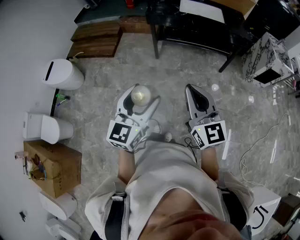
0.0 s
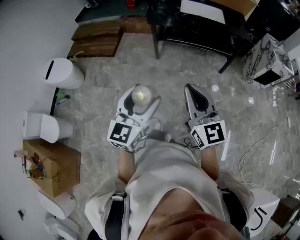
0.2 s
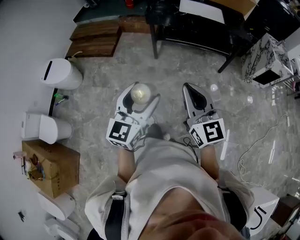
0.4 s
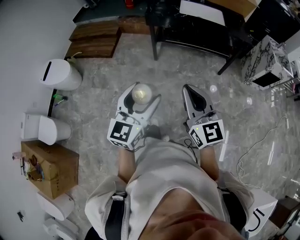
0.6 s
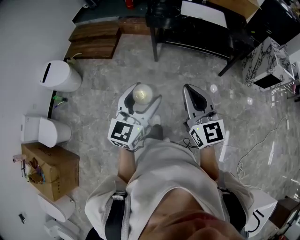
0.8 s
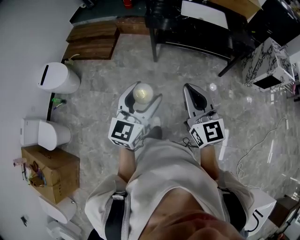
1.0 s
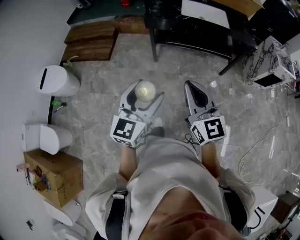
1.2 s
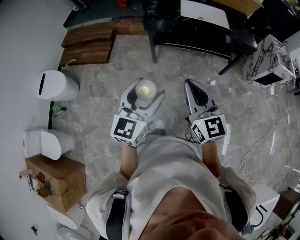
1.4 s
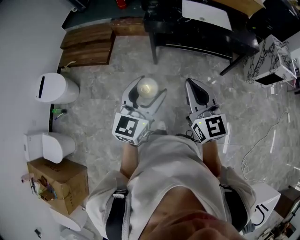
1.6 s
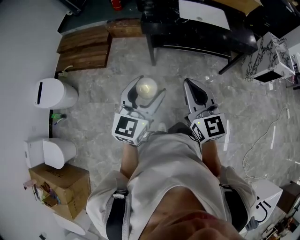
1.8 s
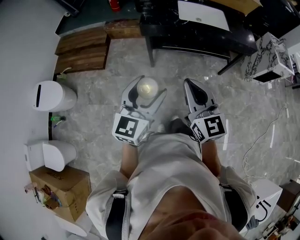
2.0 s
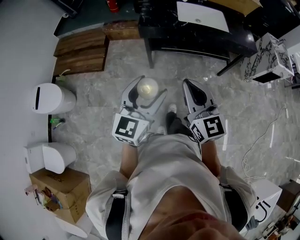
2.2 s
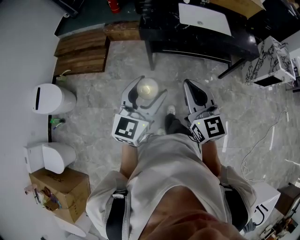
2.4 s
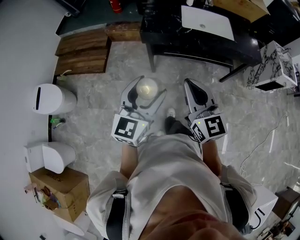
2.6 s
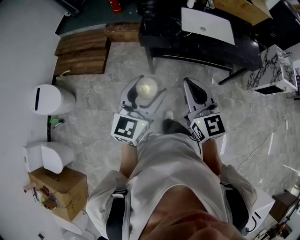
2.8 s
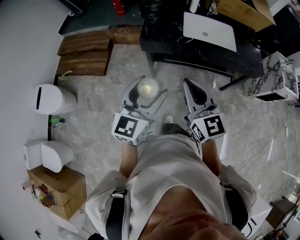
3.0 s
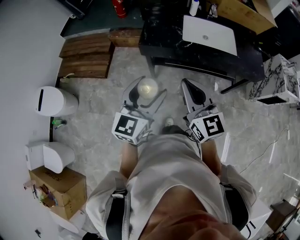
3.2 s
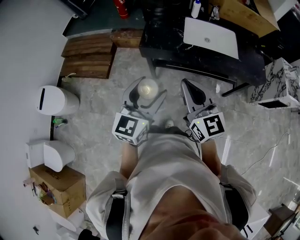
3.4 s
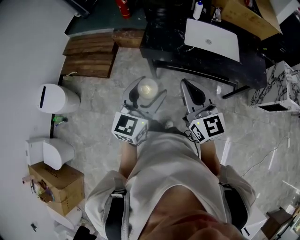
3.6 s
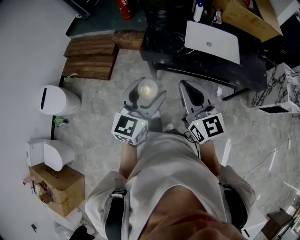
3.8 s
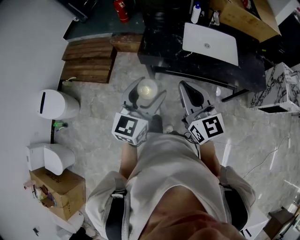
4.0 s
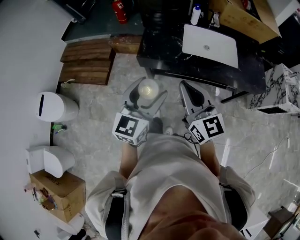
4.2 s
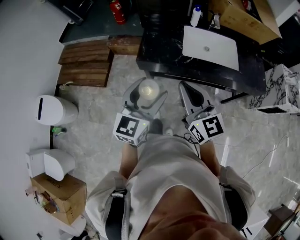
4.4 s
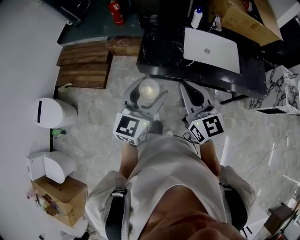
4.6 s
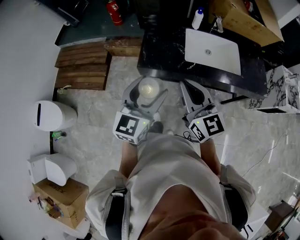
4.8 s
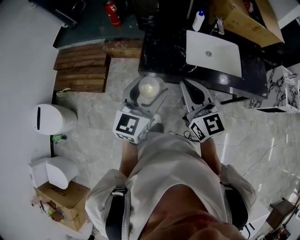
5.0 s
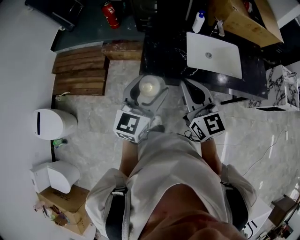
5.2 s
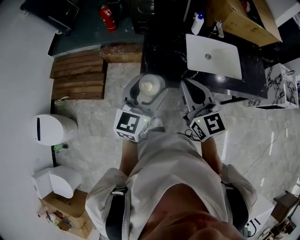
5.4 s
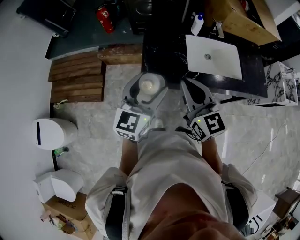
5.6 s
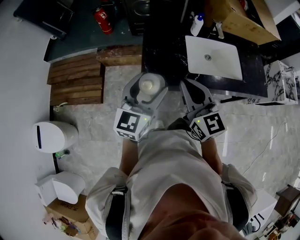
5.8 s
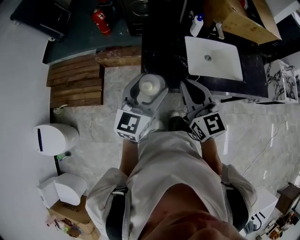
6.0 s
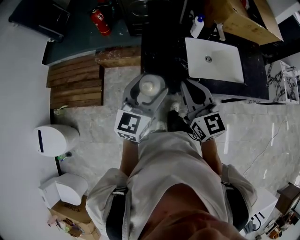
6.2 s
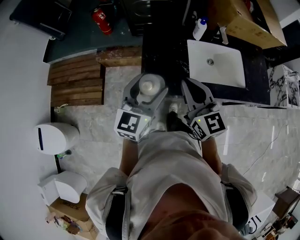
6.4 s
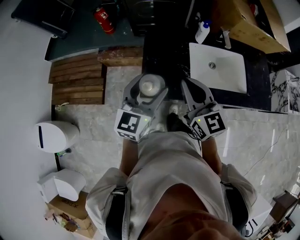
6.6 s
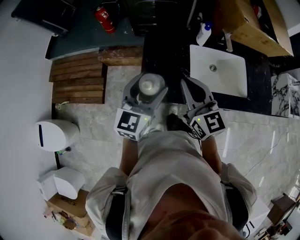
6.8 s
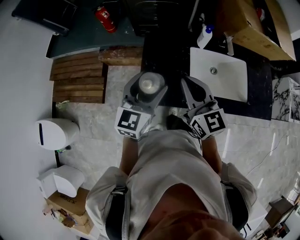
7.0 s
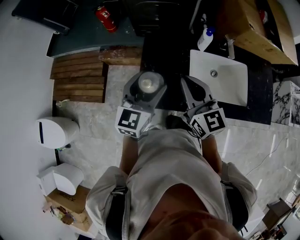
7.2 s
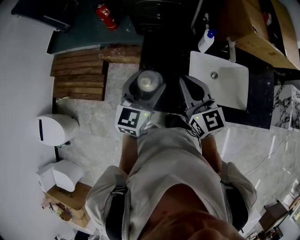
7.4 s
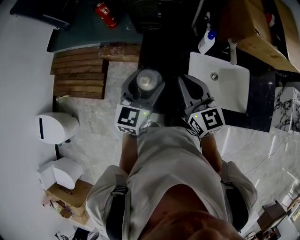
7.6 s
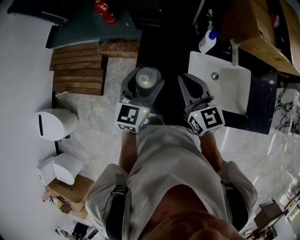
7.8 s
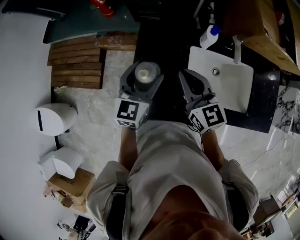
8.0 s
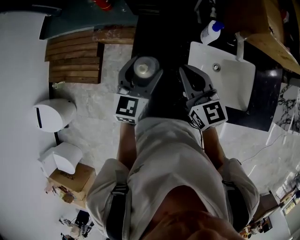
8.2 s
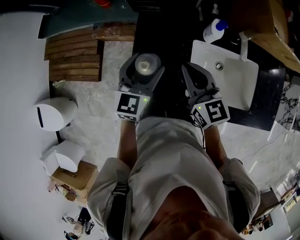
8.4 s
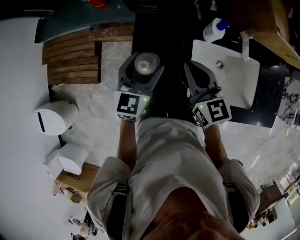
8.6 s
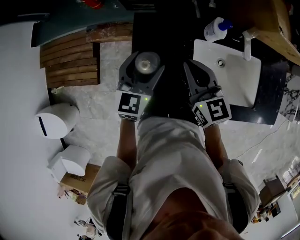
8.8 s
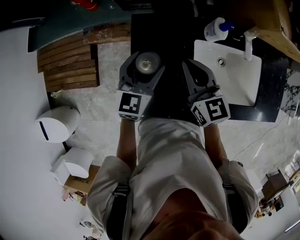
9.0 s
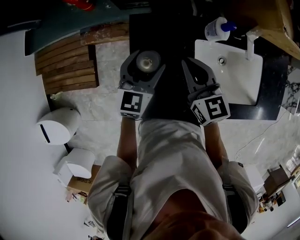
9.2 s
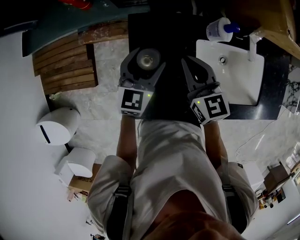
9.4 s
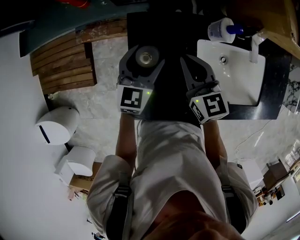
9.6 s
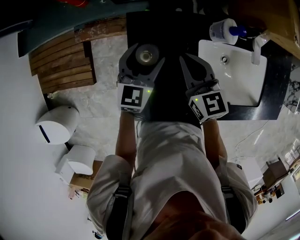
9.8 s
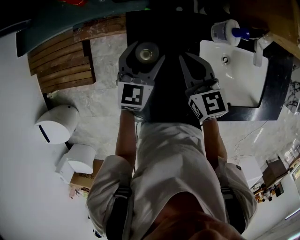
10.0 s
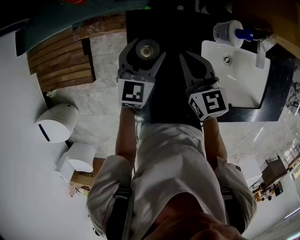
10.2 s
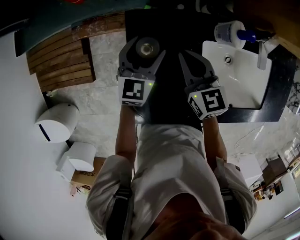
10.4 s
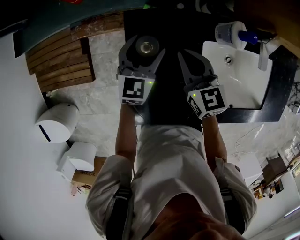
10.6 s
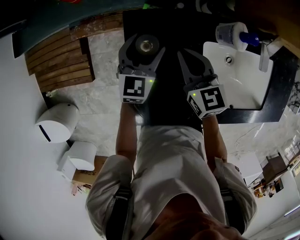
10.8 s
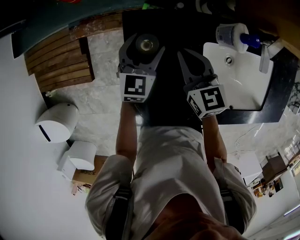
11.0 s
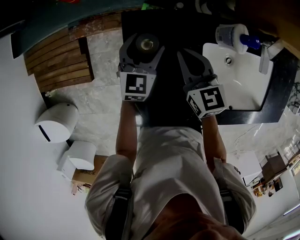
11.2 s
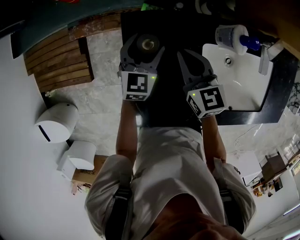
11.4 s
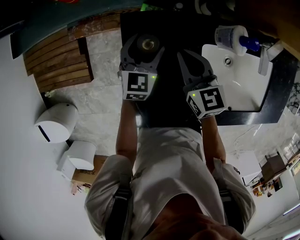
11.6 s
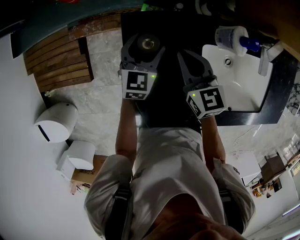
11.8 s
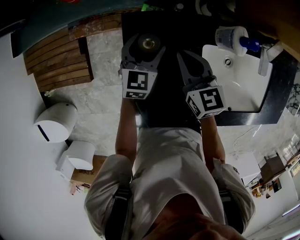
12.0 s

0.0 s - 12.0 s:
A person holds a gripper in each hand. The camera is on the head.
0.0 s - 1.6 s: The two grippers go some 25 cm forward.
1.6 s - 3.0 s: Both grippers move forward, approximately 20 cm.
3.0 s - 4.4 s: The grippers both shift forward by roughly 15 cm.
4.4 s - 6.0 s: The grippers both shift forward by about 20 cm.
6.0 s - 7.6 s: The two grippers go roughly 20 cm forward.
7.6 s - 9.0 s: The two grippers go about 15 cm forward and downward.
9.0 s - 10.4 s: Both grippers move downward and forward, roughly 10 cm.
10.4 s - 12.0 s: The left gripper shifts approximately 5 cm downward.

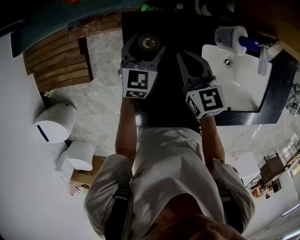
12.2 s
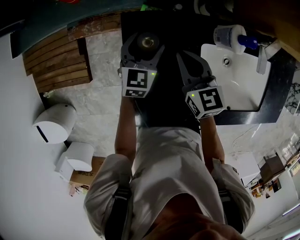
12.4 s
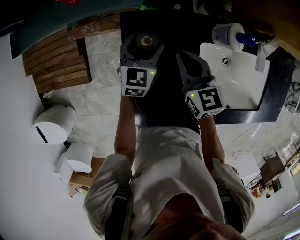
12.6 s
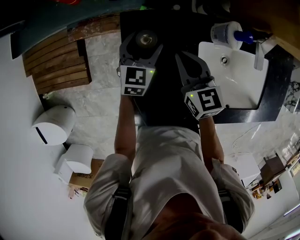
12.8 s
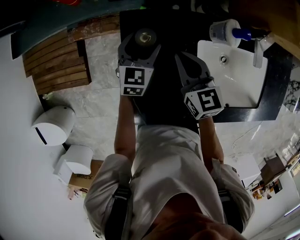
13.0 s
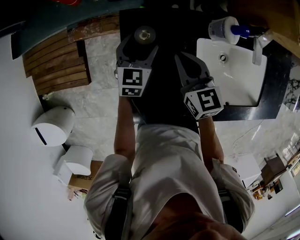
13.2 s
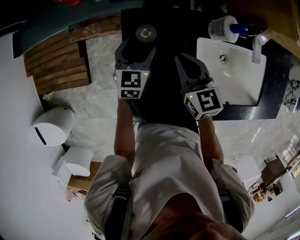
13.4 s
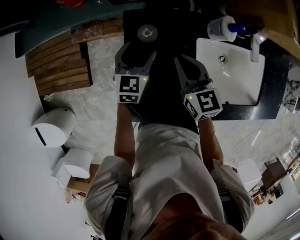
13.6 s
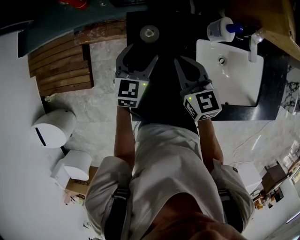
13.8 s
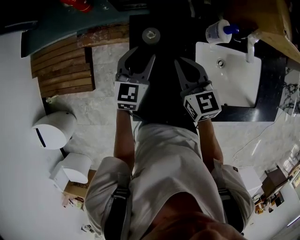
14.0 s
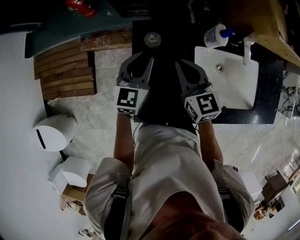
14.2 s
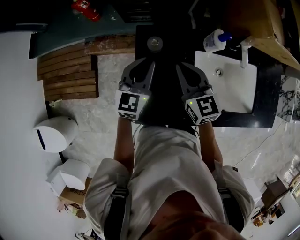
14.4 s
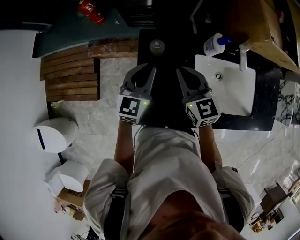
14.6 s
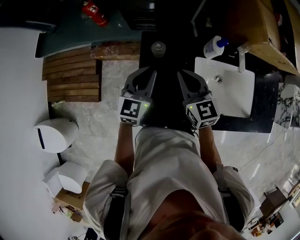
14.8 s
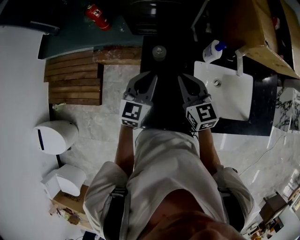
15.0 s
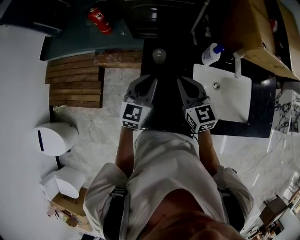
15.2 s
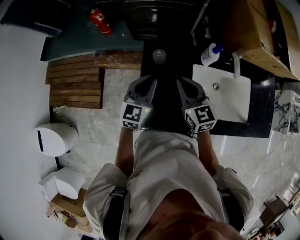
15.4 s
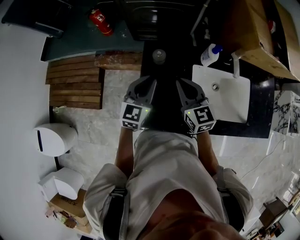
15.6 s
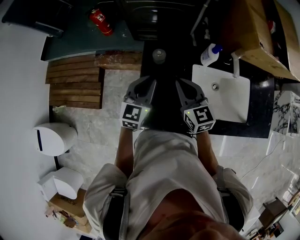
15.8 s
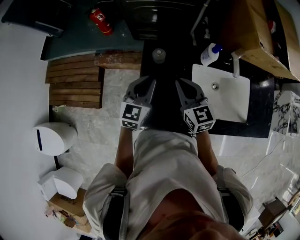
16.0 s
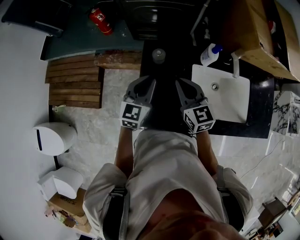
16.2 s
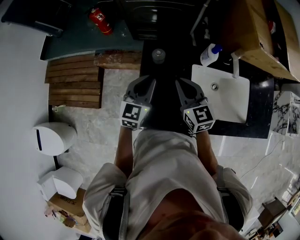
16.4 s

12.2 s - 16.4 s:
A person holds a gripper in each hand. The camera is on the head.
12.2 s - 13.6 s: The right gripper ends up about 5 cm from where it was. Meanwhile the left gripper travels backward by some 5 cm.
13.6 s - 15.0 s: The left gripper moves upward and backward, some 15 cm, and closes up. The right gripper heads upward, covering some 10 cm.
15.0 s - 16.4 s: The grippers move only a little.

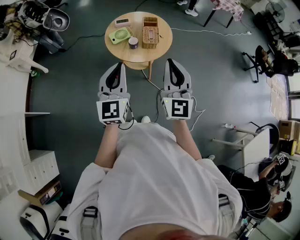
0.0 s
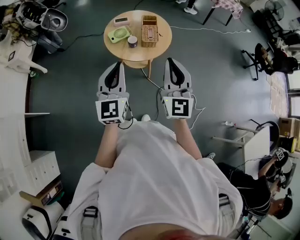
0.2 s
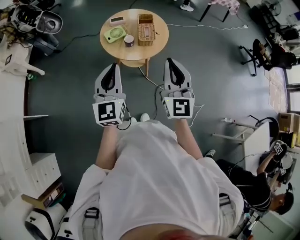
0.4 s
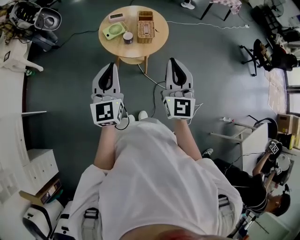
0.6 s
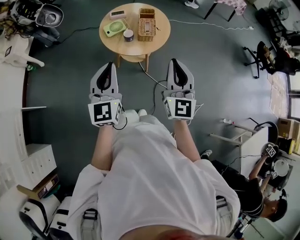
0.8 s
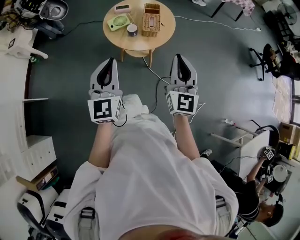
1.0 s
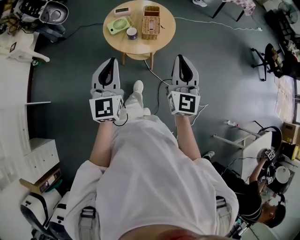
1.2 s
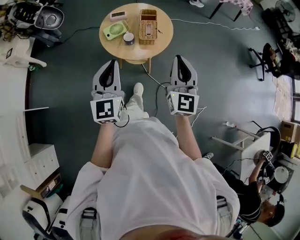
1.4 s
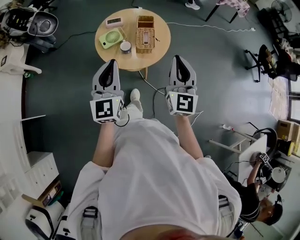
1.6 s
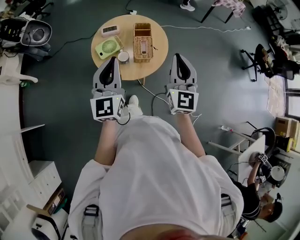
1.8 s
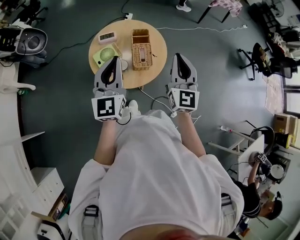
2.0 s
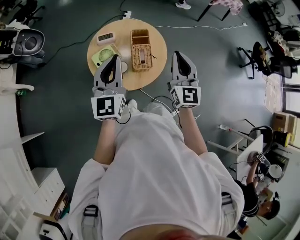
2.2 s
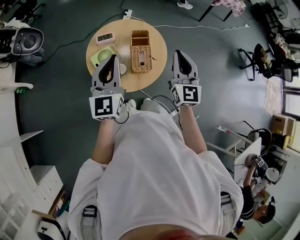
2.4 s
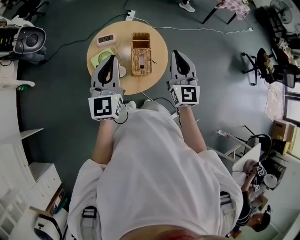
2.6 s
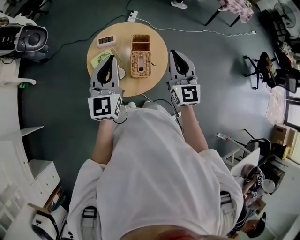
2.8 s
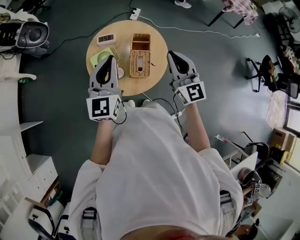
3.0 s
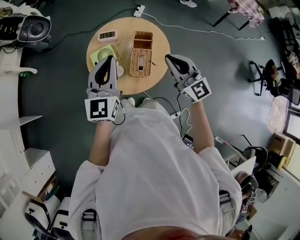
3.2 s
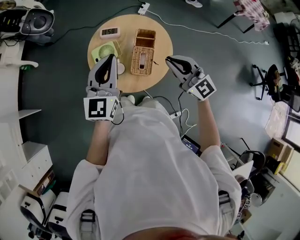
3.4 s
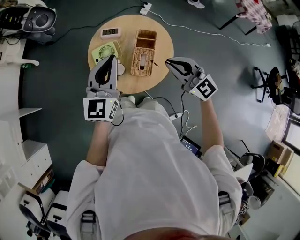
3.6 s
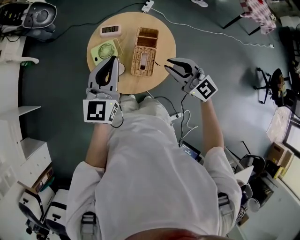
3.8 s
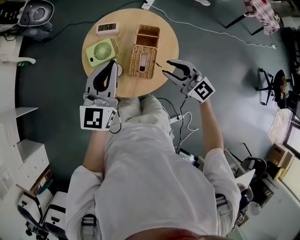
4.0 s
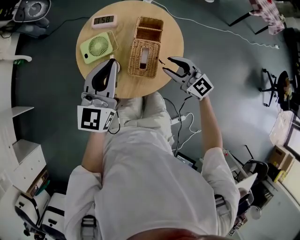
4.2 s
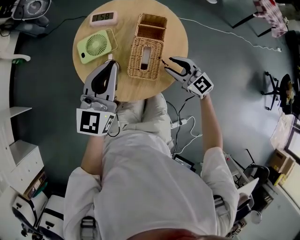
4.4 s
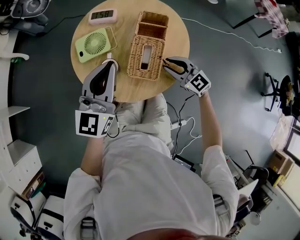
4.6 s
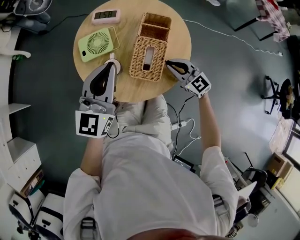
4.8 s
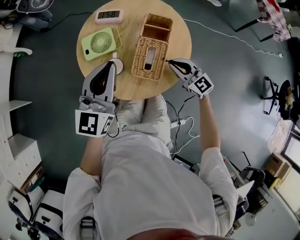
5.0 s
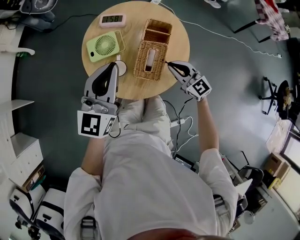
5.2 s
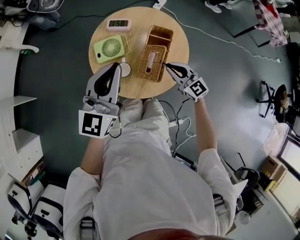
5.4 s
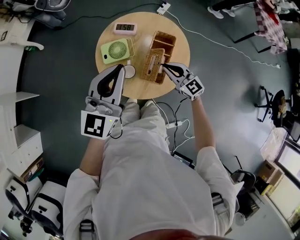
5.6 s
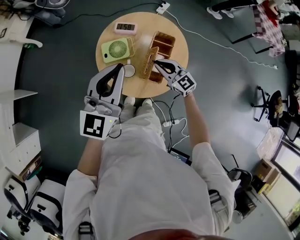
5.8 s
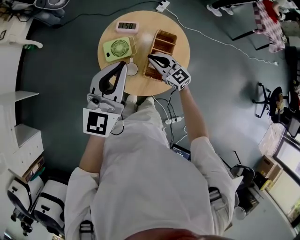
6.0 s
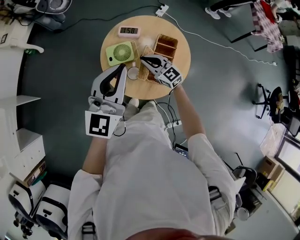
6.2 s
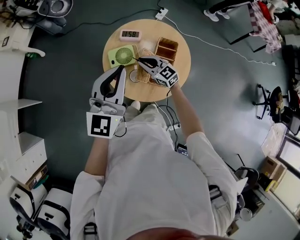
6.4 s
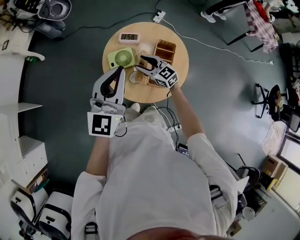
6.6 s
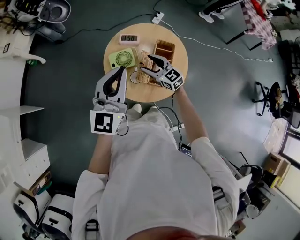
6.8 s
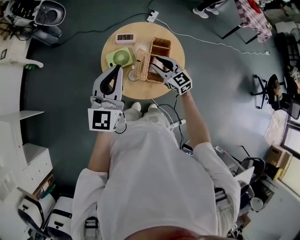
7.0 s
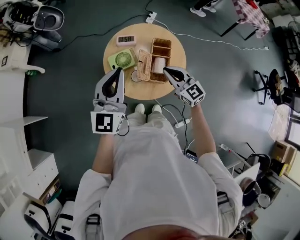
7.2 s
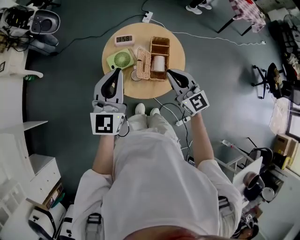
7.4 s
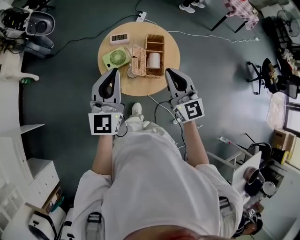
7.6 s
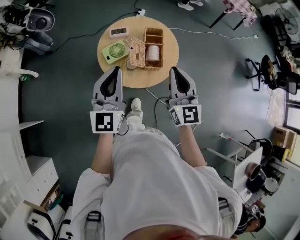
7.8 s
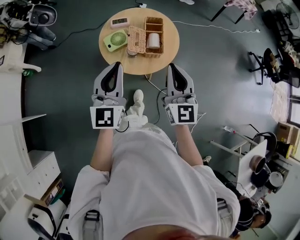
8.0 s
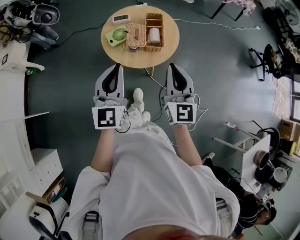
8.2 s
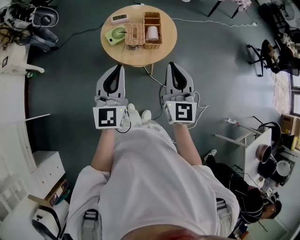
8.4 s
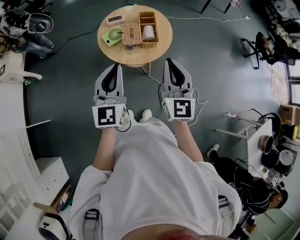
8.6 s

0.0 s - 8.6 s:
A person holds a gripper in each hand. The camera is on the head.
0.0 s - 1.4 s: The right gripper moves forward, to the right and downward, some 15 cm; the left gripper heads forward, covering about 10 cm.
1.4 s - 2.8 s: The two grippers go roughly 30 cm forward.
2.8 s - 4.4 s: The right gripper travels downward by some 40 cm, swivels approximately 50 degrees, and opens its fingers, while the left gripper is displaced downward by about 20 cm.
4.4 s - 5.8 s: The left gripper heads upward, covering some 20 cm. The right gripper shifts some 15 cm upward, to the left and forward, and closes.
5.8 s - 7.2 s: The right gripper is displaced upward and backward by about 15 cm, and opens and closes again. The left gripper is displaced to the left by roughly 5 cm.
7.2 s - 8.6 s: The right gripper changes place by approximately 35 cm, and turns by some 50 degrees; the left gripper moves about 25 cm.
